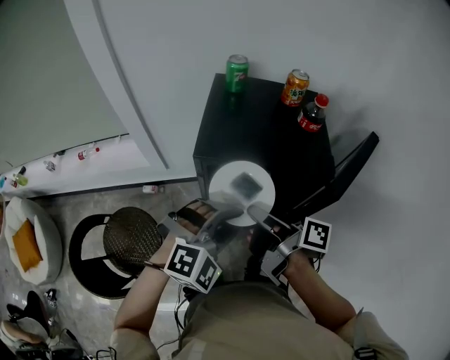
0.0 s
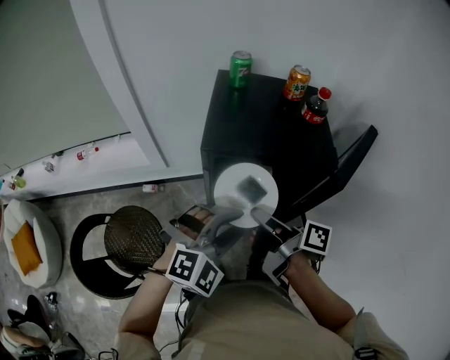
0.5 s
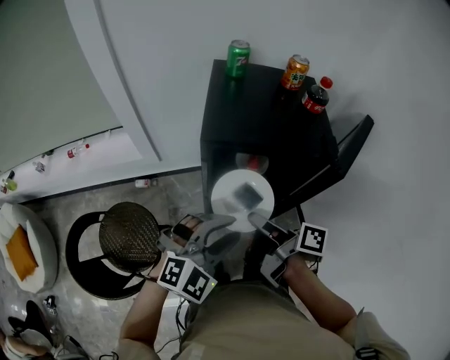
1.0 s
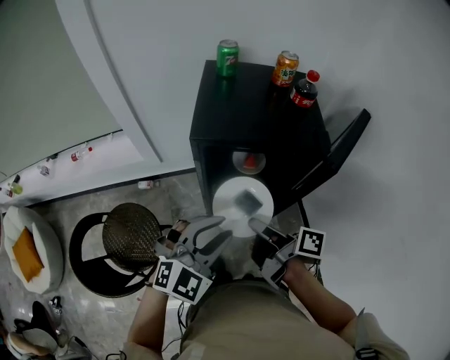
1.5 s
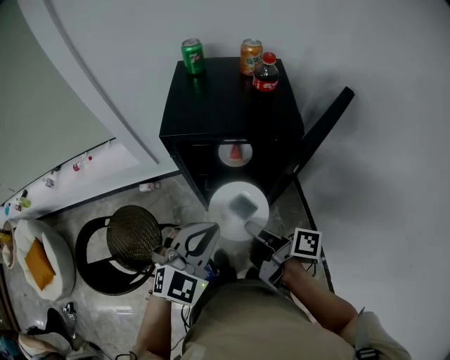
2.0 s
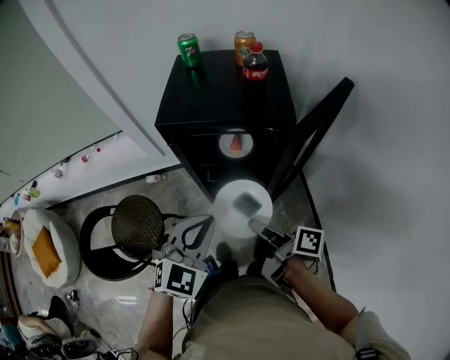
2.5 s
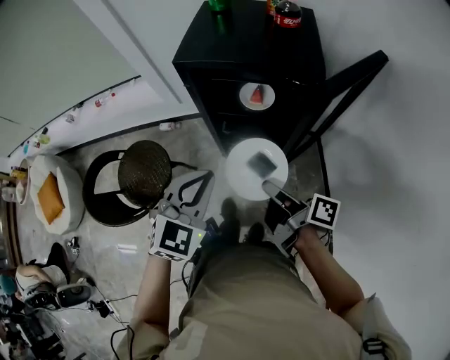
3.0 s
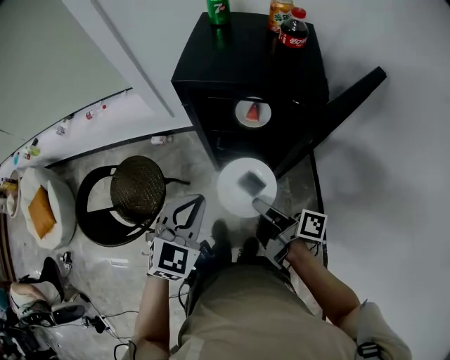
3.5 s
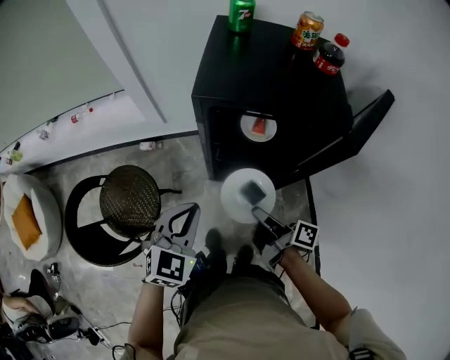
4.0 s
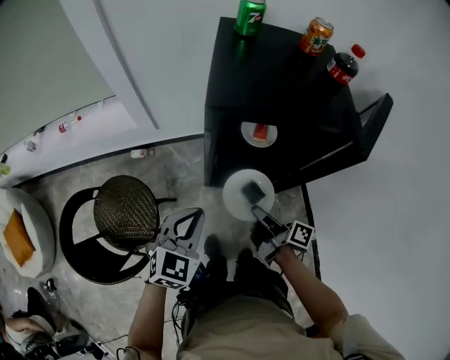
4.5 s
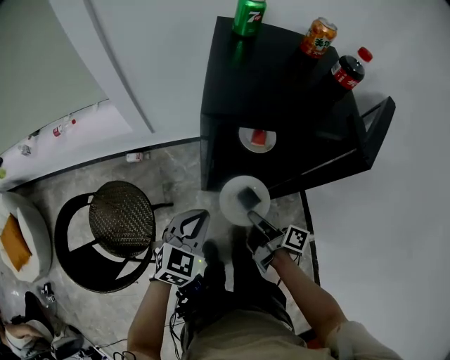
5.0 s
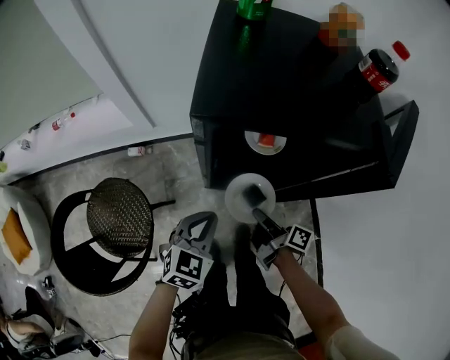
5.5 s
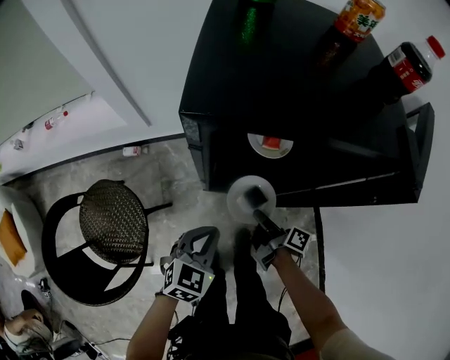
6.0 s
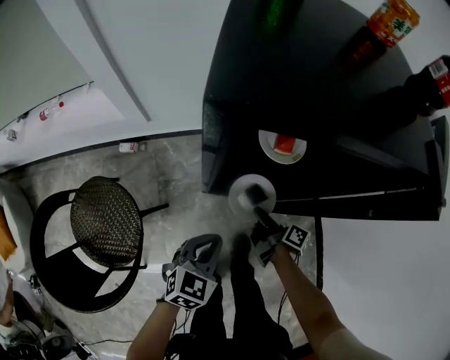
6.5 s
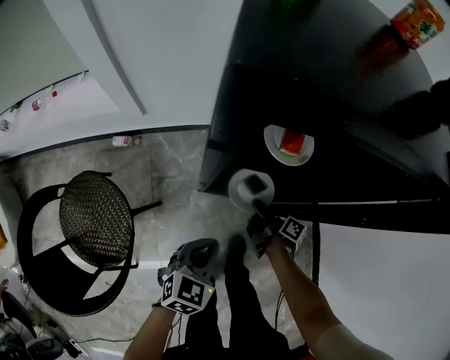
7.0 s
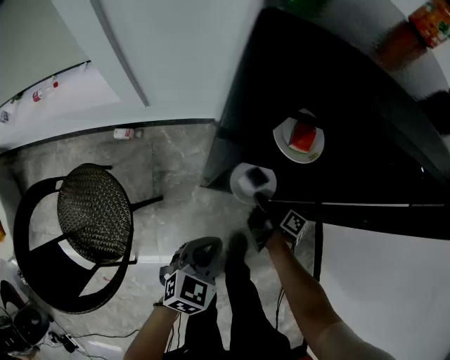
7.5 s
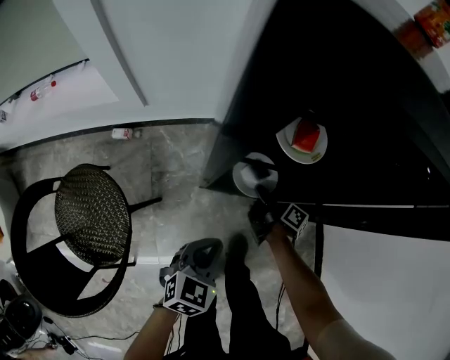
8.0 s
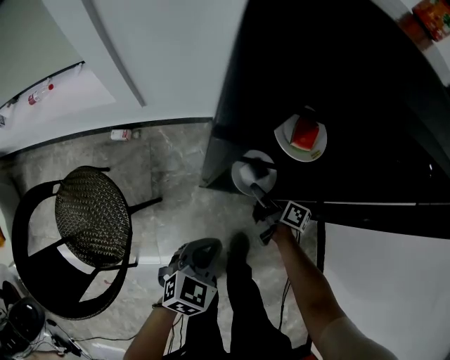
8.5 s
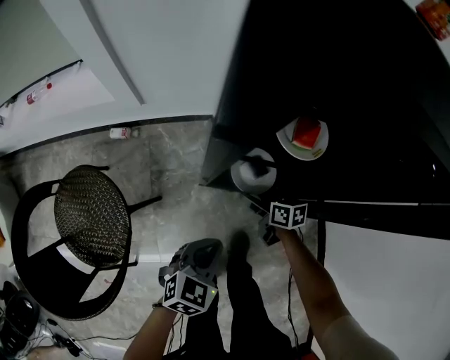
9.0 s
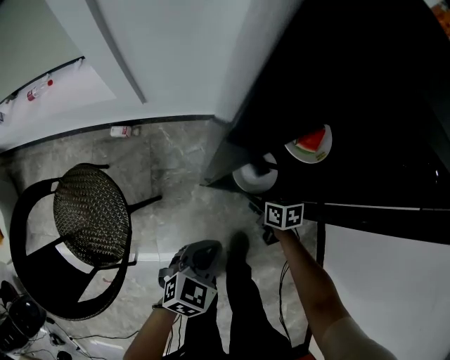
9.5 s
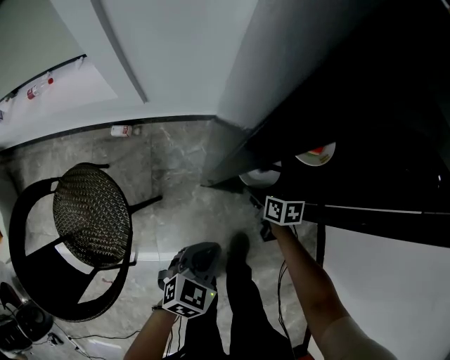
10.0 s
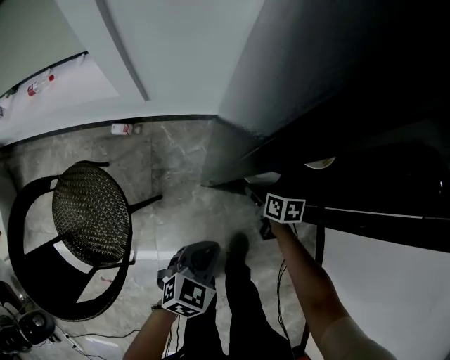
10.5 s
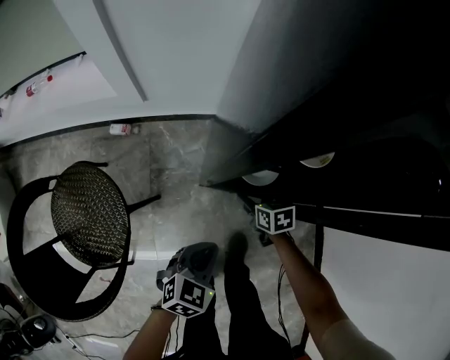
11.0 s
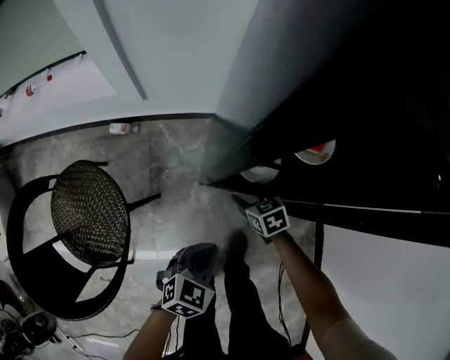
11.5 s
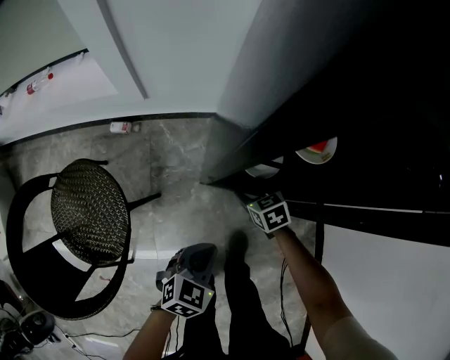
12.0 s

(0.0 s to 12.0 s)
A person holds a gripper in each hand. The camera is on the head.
0.0 s - 2.0 s: The right gripper goes some 15 cm backward, downward and to the right; the left gripper heads backward, covering roughly 10 cm, changes its angle by some 30 degrees, and closes up.
2.0 s - 4.0 s: The left gripper travels to the left and downward by roughly 15 cm, and rotates approximately 20 degrees. The right gripper heads downward, covering some 10 cm.
4.0 s - 6.0 s: The left gripper is displaced downward by some 20 cm. Meanwhile the right gripper is displaced downward and forward by some 25 cm.
6.0 s - 8.0 s: The left gripper moves downward, about 10 cm, while the right gripper is displaced downward and forward by roughly 15 cm.
8.0 s - 10.0 s: The right gripper rotates around the line of its fingers by roughly 50 degrees, counterclockwise from behind, and opens.
10.0 s - 12.0 s: The right gripper changes its angle by about 30 degrees.

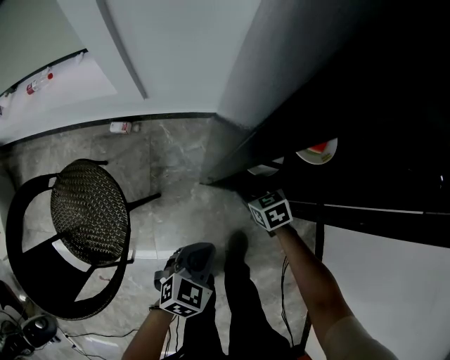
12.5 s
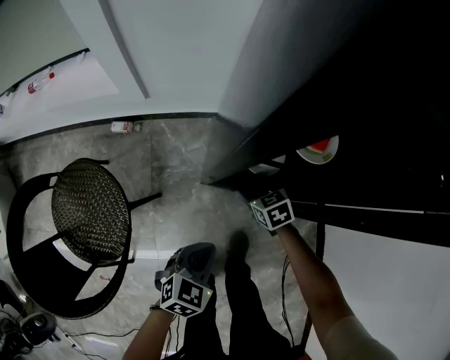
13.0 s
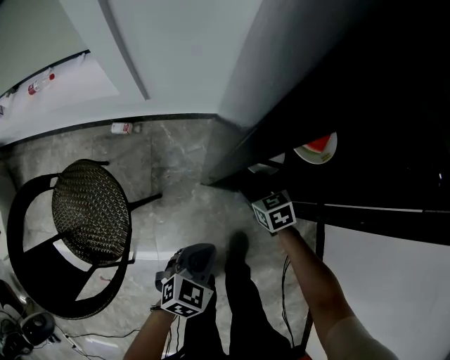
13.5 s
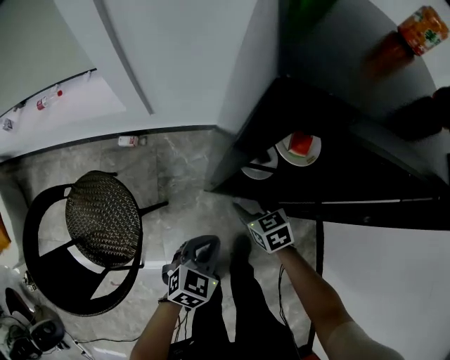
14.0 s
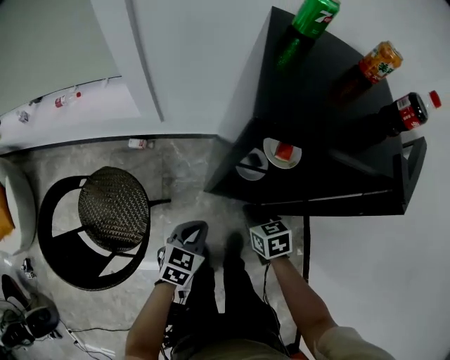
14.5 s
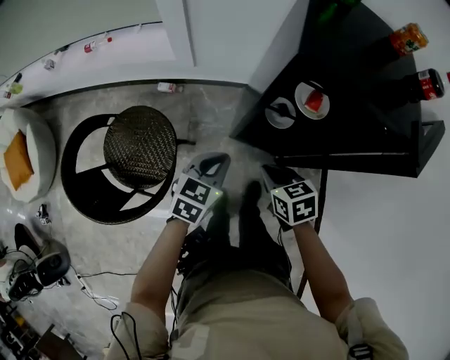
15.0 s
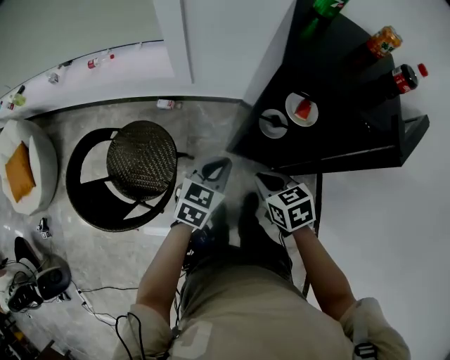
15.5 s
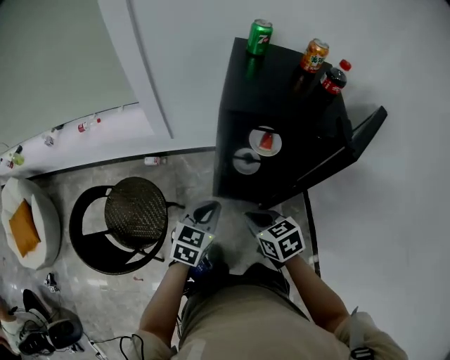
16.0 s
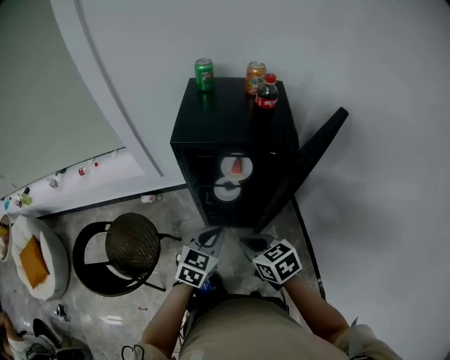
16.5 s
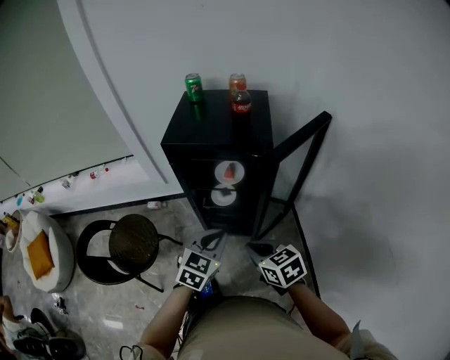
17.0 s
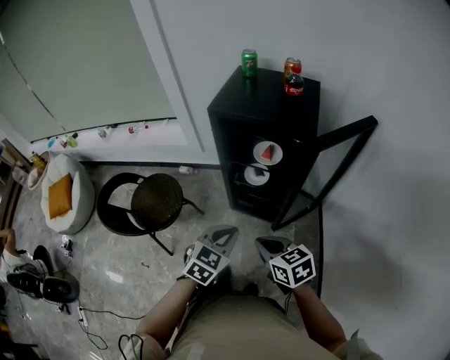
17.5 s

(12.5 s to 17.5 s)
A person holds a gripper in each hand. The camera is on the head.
12.5 s - 15.0 s: The left gripper heads upward, covering approximately 20 cm; the right gripper heads upward and backward, covering some 35 cm, and closes its fingers.
15.0 s - 17.5 s: The left gripper shifts some 30 cm backward, to the right and upward; the right gripper heads backward, upward and to the right, covering roughly 30 cm, and rotates some 20 degrees.

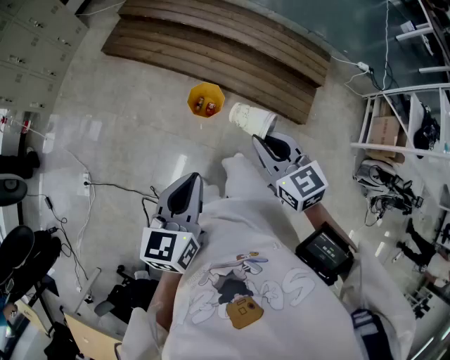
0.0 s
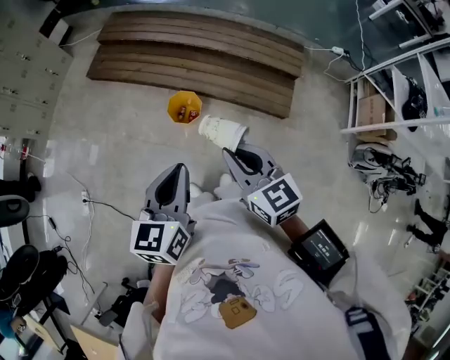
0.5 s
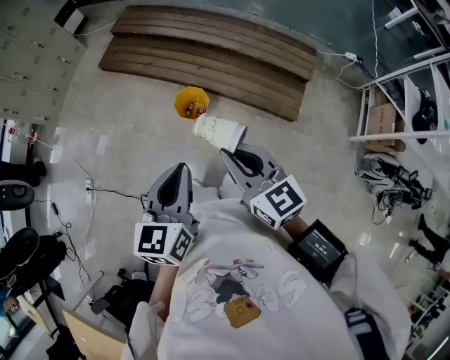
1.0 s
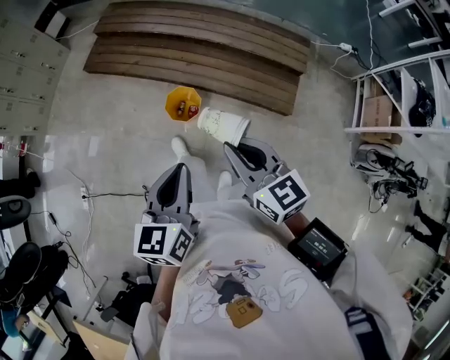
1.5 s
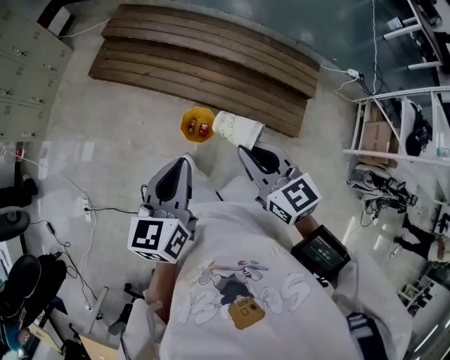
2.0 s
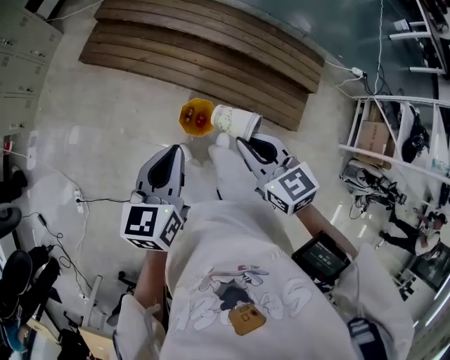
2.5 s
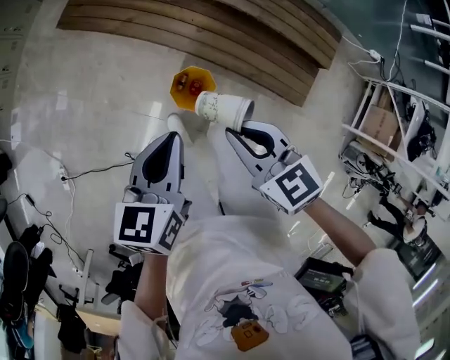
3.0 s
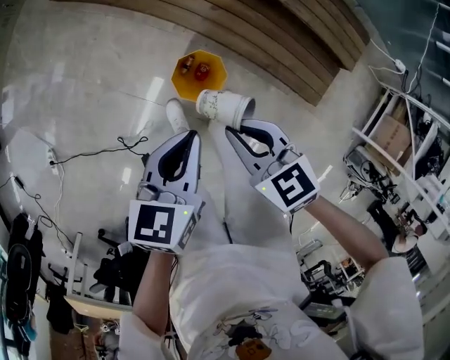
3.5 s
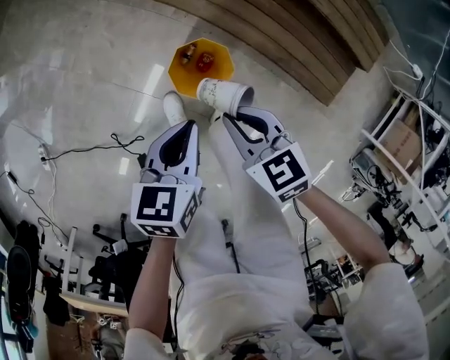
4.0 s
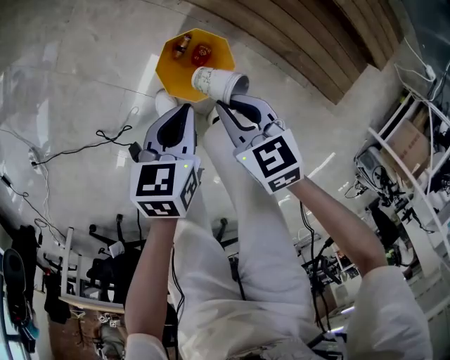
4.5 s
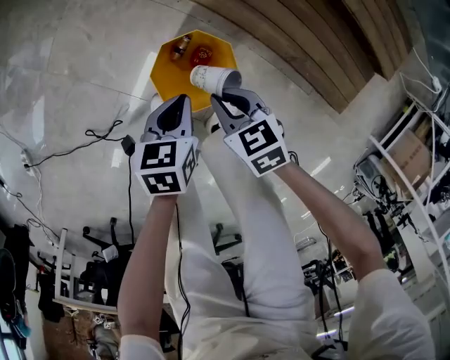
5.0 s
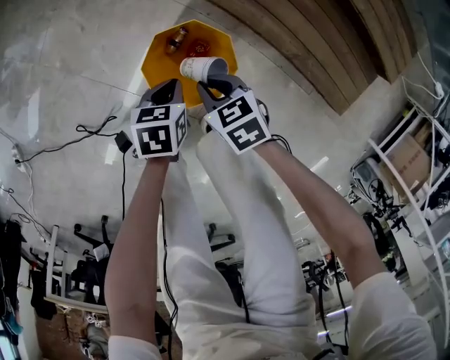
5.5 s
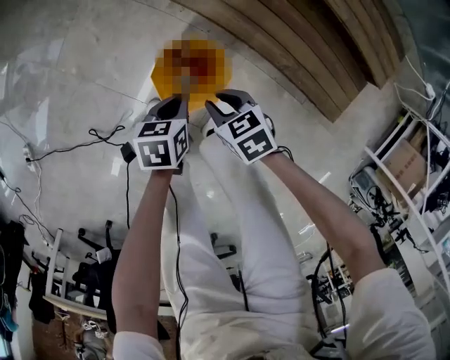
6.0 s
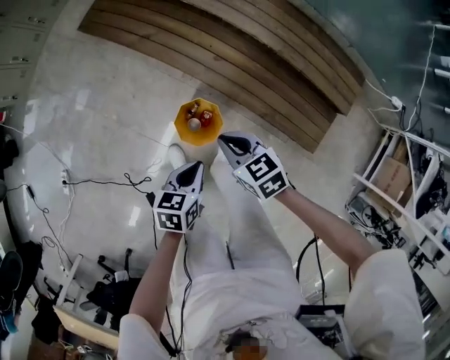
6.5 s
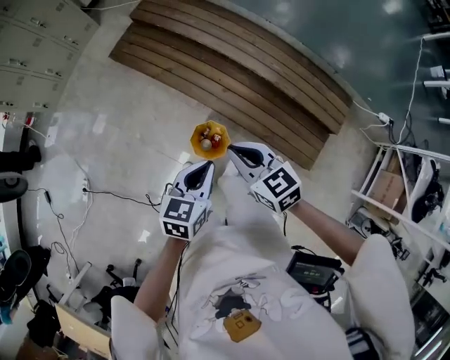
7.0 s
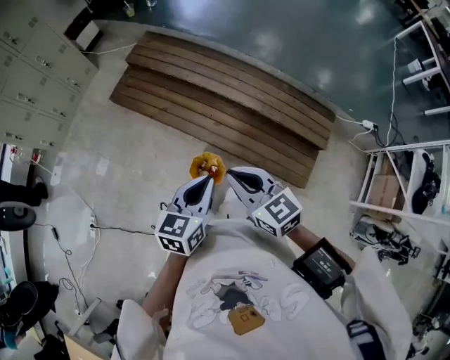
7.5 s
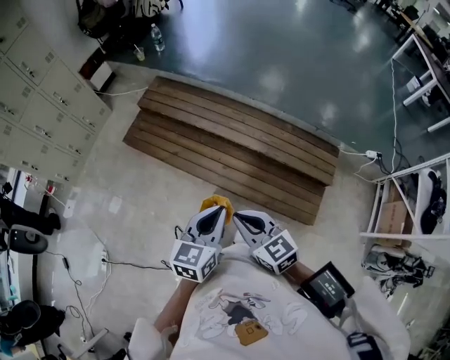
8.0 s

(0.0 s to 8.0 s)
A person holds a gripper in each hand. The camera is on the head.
0.0 s - 2.0 s: The right gripper goes roughly 10 cm forward. Meanwhile the left gripper goes about 15 cm forward.
2.0 s - 4.0 s: Both grippers travel together downward, approximately 50 cm. The left gripper swivels about 30 degrees, while the right gripper swivels approximately 30 degrees.
4.0 s - 6.0 s: Both grippers travel together downward, about 25 cm.
6.0 s - 8.0 s: The grippers both shift upward by roughly 70 cm. The left gripper points its fingers some 40 degrees further upward; the right gripper tilts its fingers about 40 degrees upward, and closes up.

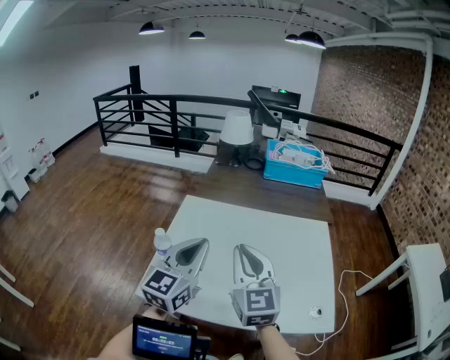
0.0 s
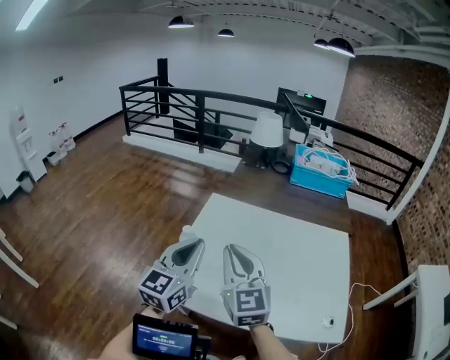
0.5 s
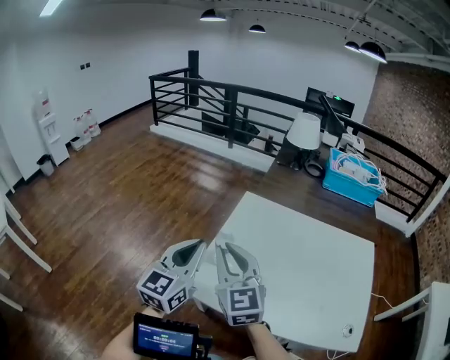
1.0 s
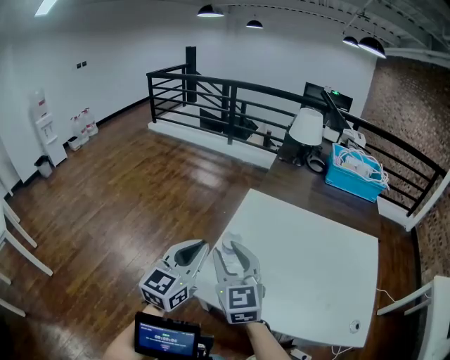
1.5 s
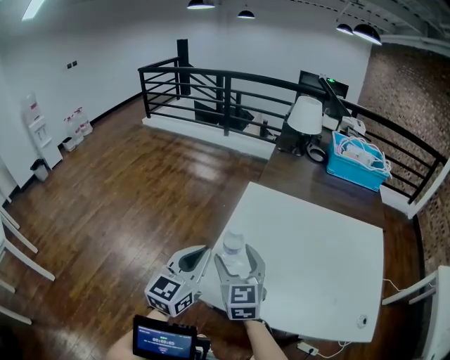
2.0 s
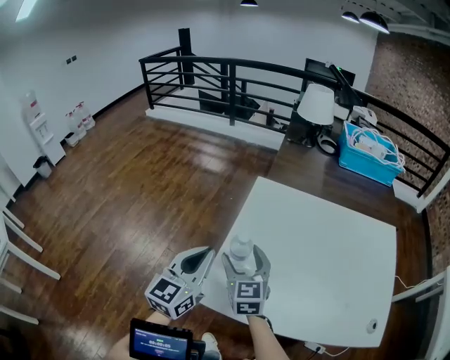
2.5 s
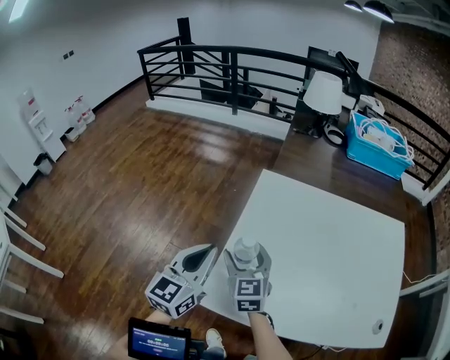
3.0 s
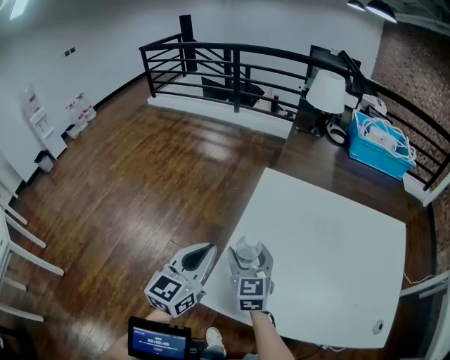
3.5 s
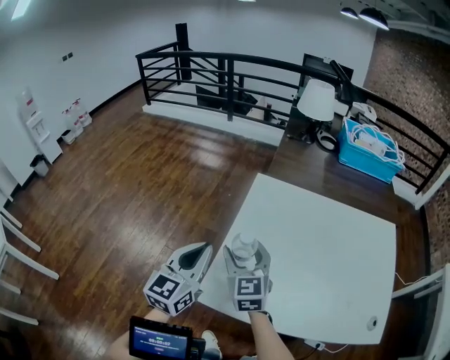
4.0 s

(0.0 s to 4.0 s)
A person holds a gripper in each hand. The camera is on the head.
0.0 s - 2.0 s: Both grippers move to the left and downward, some 25 cm. The right gripper opens.
2.0 s - 4.0 s: The right gripper moves forward, roughly 5 cm, while the left gripper ends up about 5 cm from where it was.
